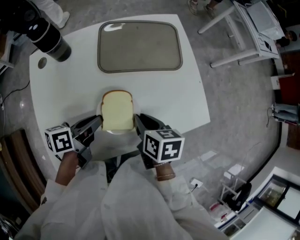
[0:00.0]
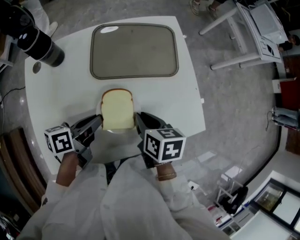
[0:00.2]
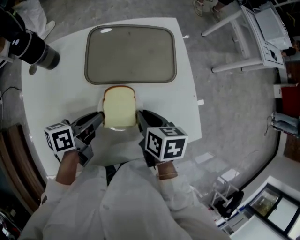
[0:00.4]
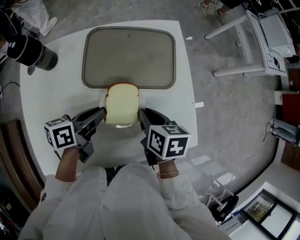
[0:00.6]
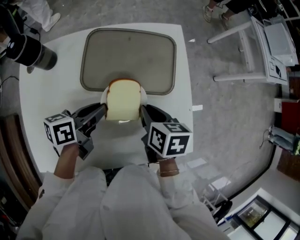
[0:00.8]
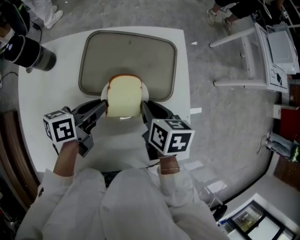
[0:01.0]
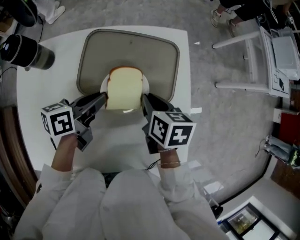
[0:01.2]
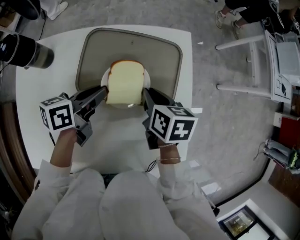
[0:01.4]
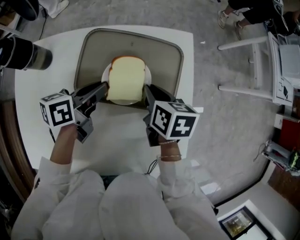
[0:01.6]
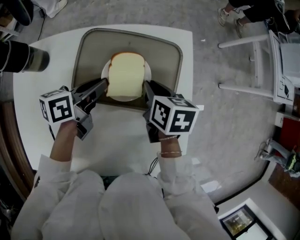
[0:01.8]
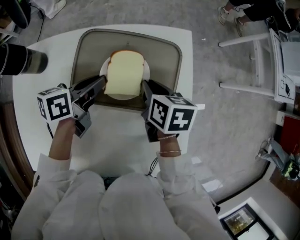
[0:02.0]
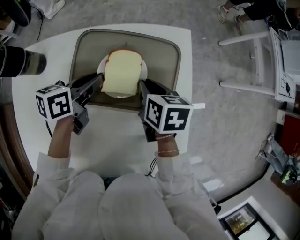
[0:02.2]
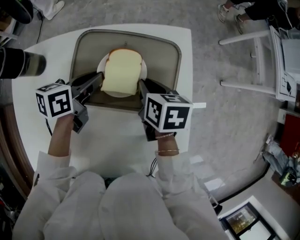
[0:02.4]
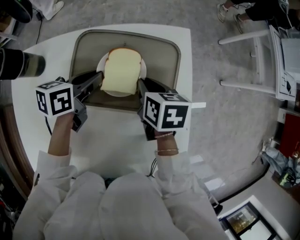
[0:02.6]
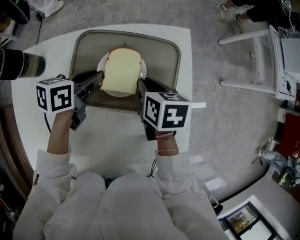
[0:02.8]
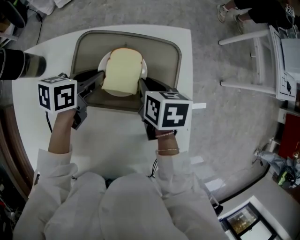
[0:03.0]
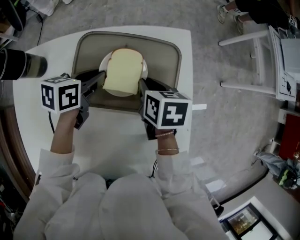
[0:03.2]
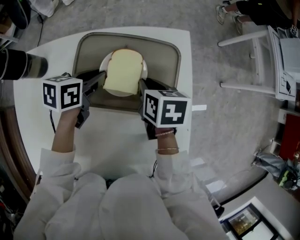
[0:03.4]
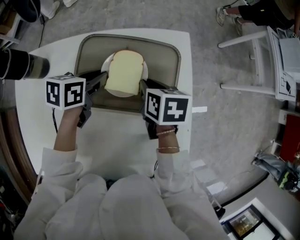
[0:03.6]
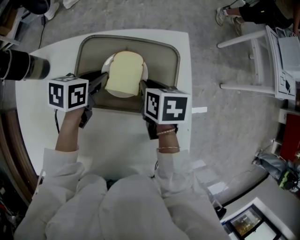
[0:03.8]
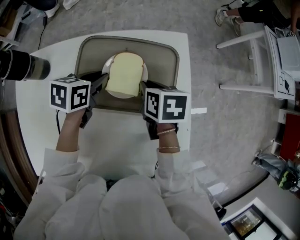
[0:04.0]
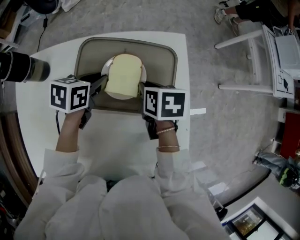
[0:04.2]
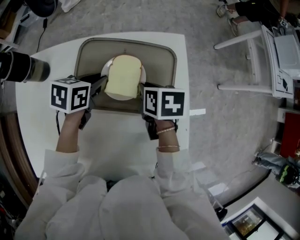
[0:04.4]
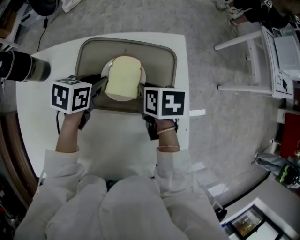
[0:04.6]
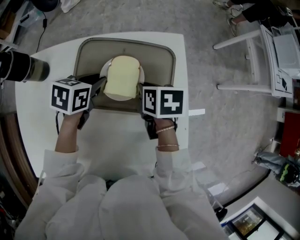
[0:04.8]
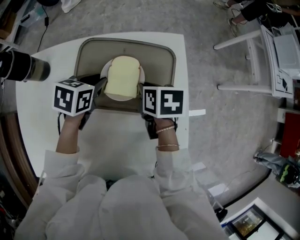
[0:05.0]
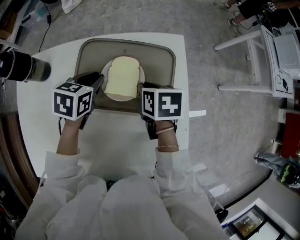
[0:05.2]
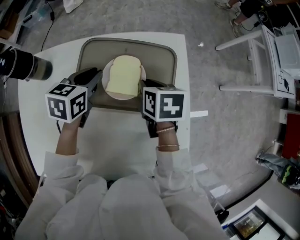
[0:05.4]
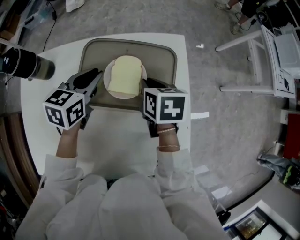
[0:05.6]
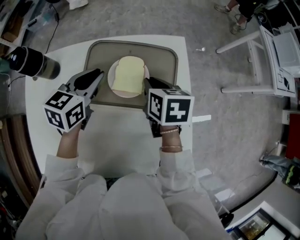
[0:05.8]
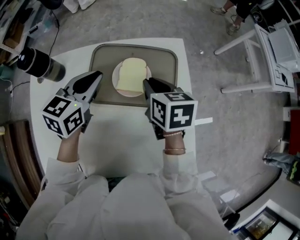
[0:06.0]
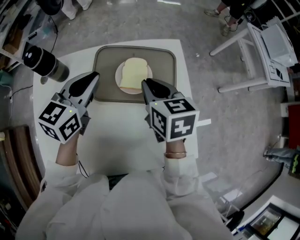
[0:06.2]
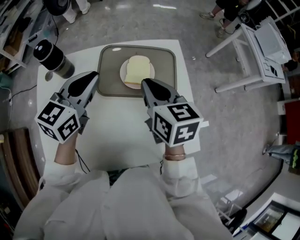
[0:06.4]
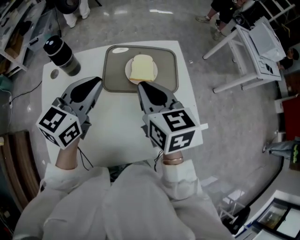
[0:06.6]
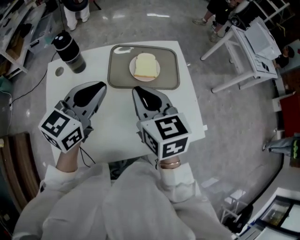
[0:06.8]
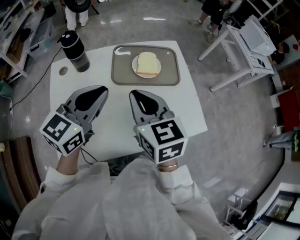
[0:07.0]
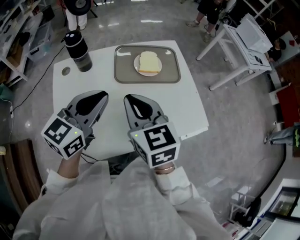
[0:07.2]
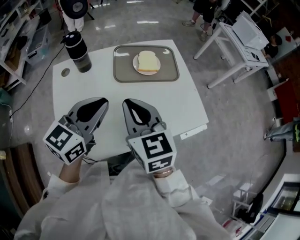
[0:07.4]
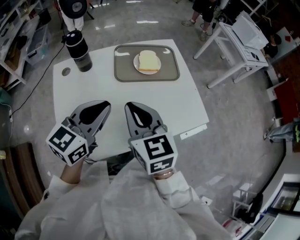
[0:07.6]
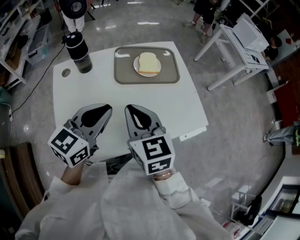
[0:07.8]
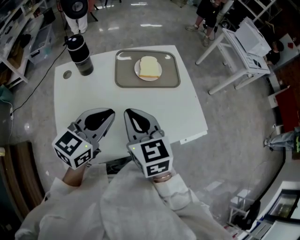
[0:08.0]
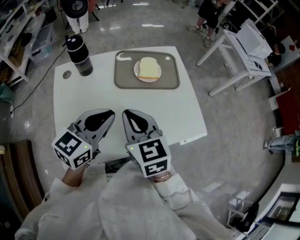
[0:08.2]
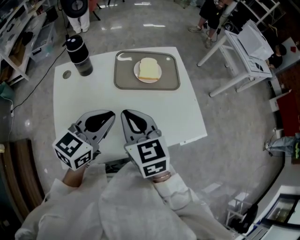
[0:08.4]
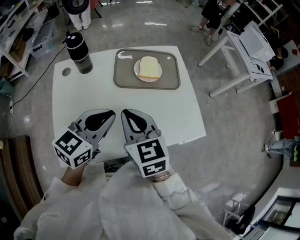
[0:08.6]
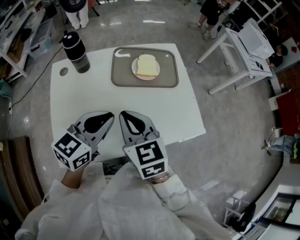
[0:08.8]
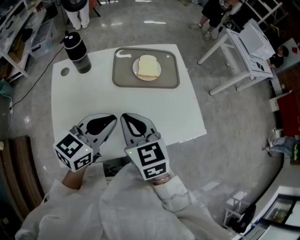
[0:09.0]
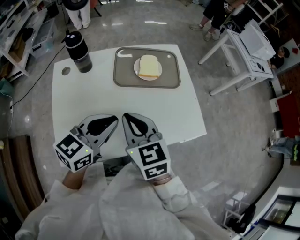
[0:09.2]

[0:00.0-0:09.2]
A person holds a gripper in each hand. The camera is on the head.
0:00.0 to 0:01.6: Both grippers move forward, approximately 25 cm.
0:01.6 to 0:03.0: The left gripper shifts by about 5 cm.
0:03.0 to 0:04.6: The grippers make only small movements.
0:04.6 to 0:06.2: The left gripper travels upward by about 20 cm, and rotates about 40 degrees. The right gripper is displaced upward and backward by about 15 cm, and changes its angle by some 30 degrees.
0:06.2 to 0:07.6: The left gripper is displaced backward by roughly 30 cm, while the right gripper travels backward and to the left by approximately 30 cm, and rotates some 20 degrees.
0:07.6 to 0:09.2: The left gripper changes place by approximately 5 cm.

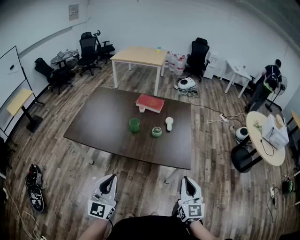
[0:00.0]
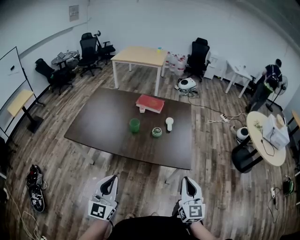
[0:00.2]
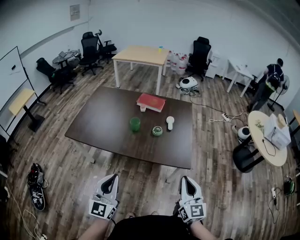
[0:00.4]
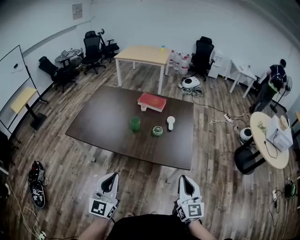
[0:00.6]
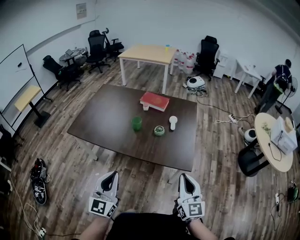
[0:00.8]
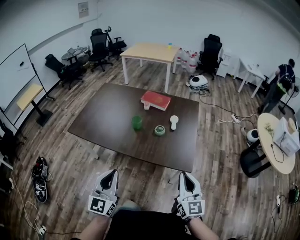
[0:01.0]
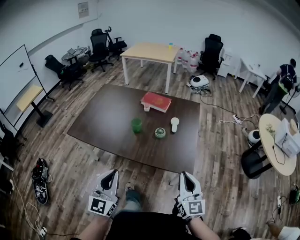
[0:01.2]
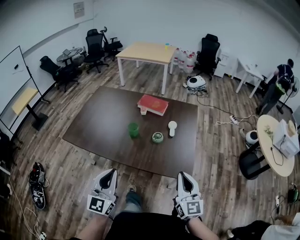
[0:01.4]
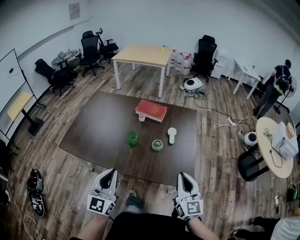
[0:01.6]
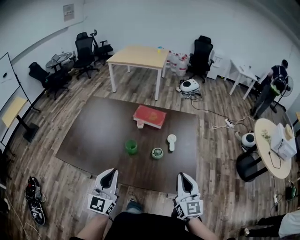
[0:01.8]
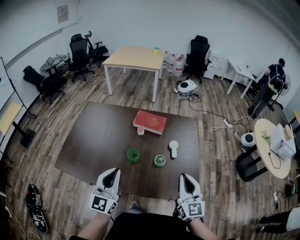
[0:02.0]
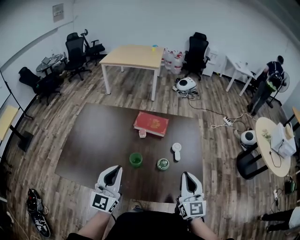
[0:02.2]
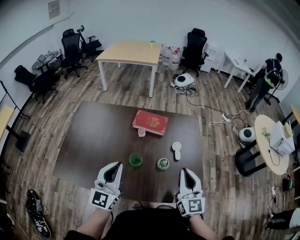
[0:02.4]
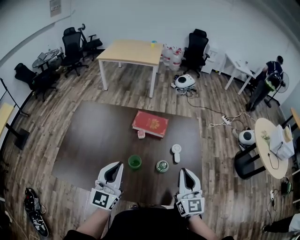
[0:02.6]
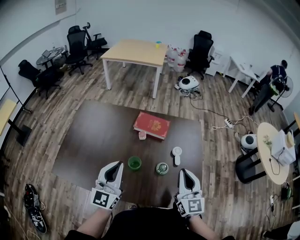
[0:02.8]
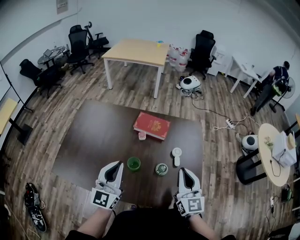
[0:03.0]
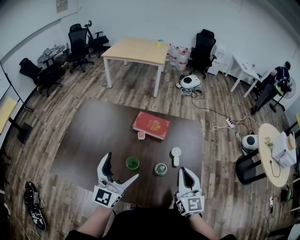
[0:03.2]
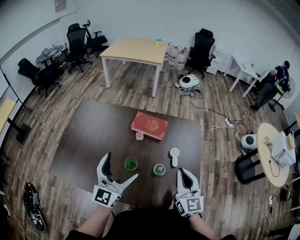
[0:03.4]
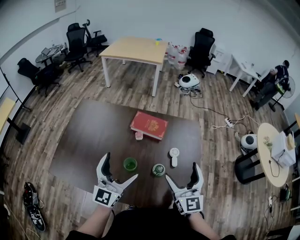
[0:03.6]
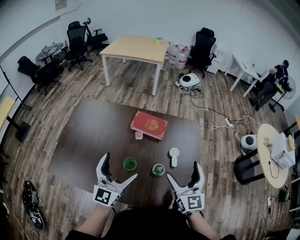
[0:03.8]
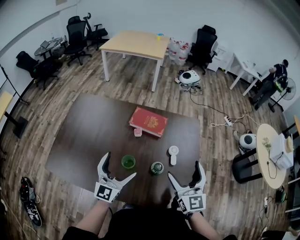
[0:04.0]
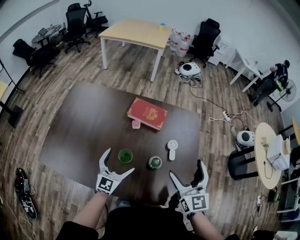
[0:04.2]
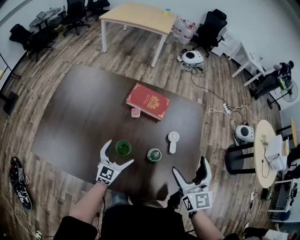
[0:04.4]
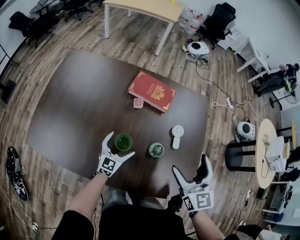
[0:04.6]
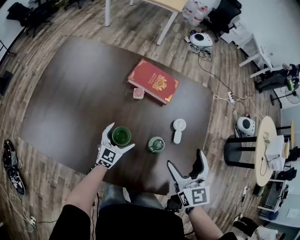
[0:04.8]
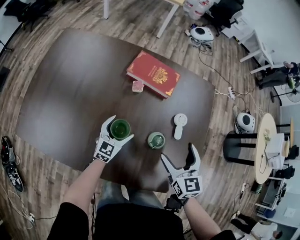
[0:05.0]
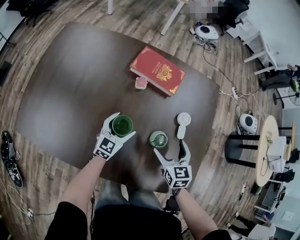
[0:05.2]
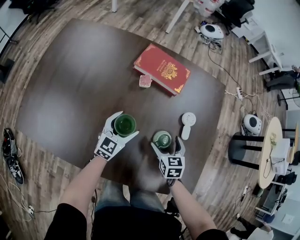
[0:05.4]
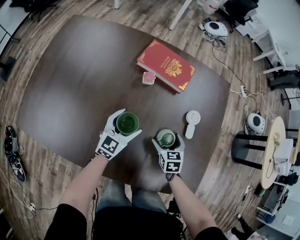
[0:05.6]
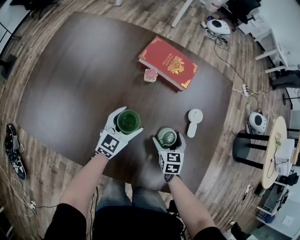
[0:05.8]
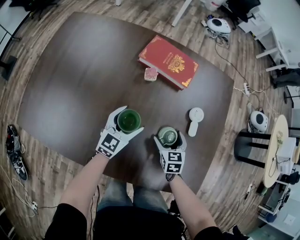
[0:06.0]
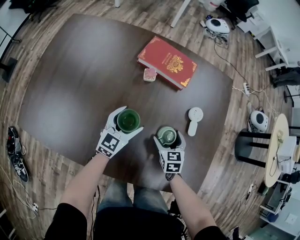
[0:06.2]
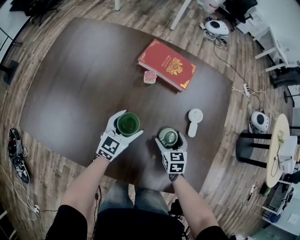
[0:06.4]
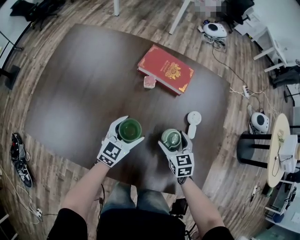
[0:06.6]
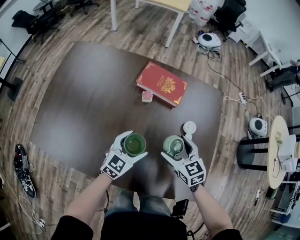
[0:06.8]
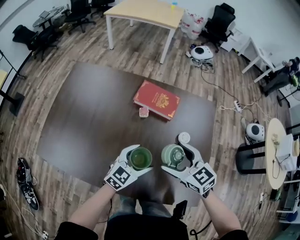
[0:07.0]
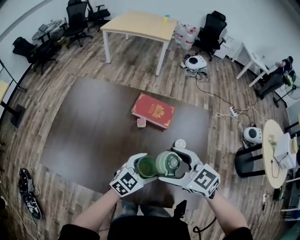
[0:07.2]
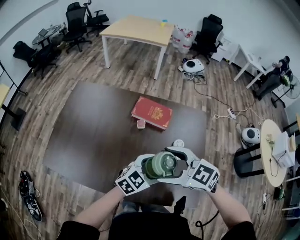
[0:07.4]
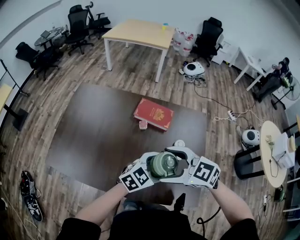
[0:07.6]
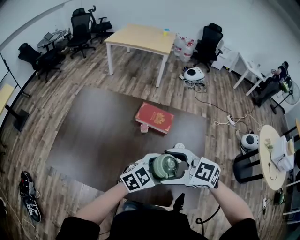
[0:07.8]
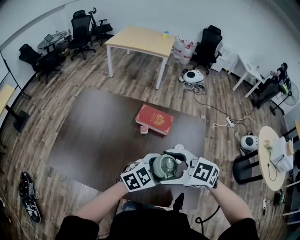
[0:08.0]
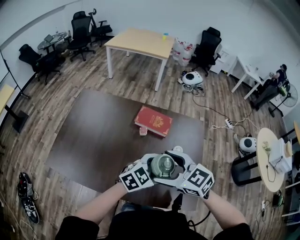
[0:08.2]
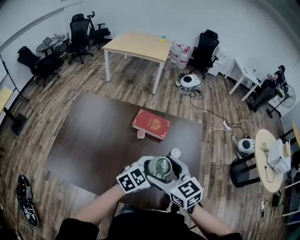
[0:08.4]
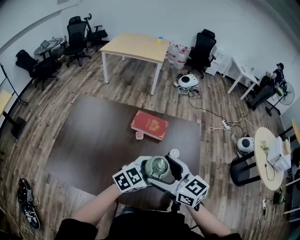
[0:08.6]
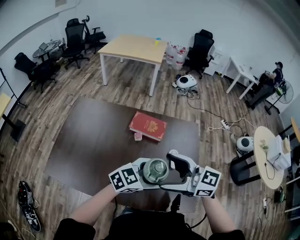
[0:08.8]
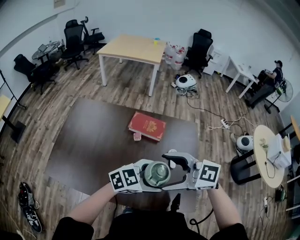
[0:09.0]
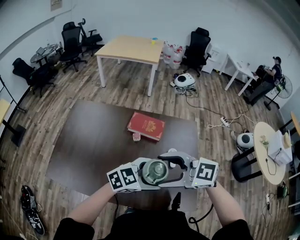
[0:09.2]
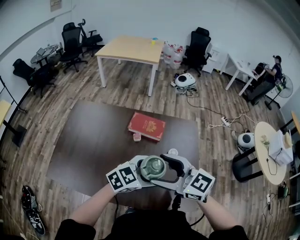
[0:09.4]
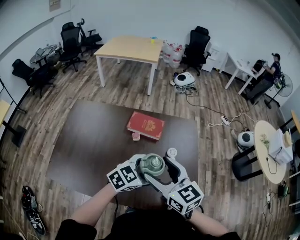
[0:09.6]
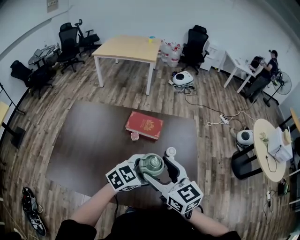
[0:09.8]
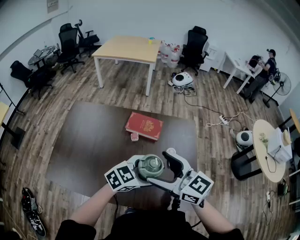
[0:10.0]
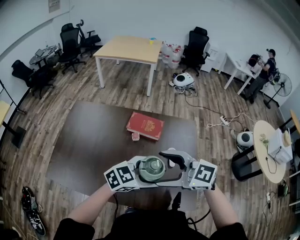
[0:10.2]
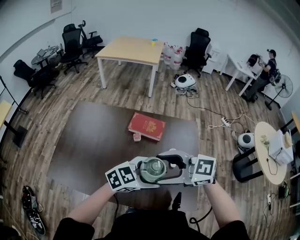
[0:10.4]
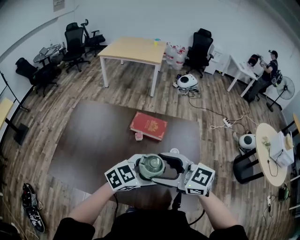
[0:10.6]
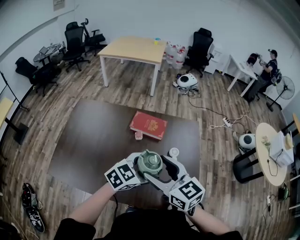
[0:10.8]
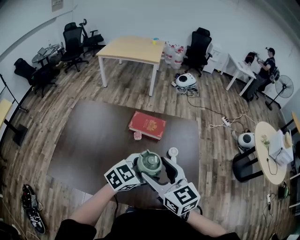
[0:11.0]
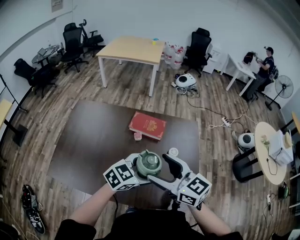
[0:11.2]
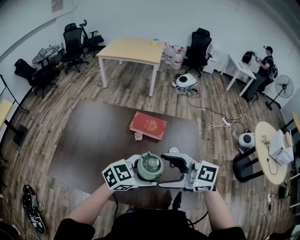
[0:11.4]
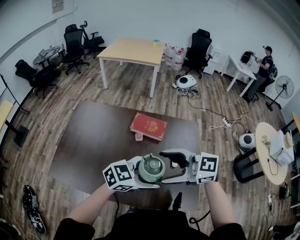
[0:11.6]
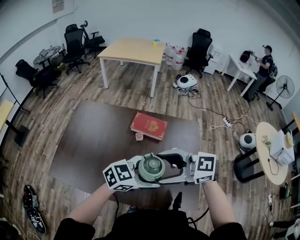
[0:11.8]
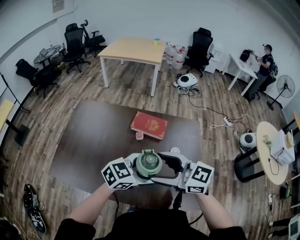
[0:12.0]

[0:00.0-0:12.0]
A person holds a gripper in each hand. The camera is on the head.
0:00.0 to 0:01.6: Both grippers move forward, roughly 20 cm.
0:01.6 to 0:03.0: The right gripper heads forward and to the left, covering roughly 25 cm. Meanwhile the left gripper moves forward, roughly 25 cm.
0:03.0 to 0:04.4: The right gripper goes roughly 5 cm forward, and opens its fingers. Meanwhile the left gripper heads downward, covering about 25 cm, swivels about 20 degrees, and opens up.
0:04.4 to 0:06.0: The right gripper travels downward by some 40 cm, and tilts its fingers approximately 30 degrees downward, while the left gripper travels downward and forward by approximately 15 cm.
0:06.0 to 0:07.6: The right gripper goes some 40 cm upward, and changes its angle by some 60 degrees. The left gripper travels upward by roughly 25 cm, and rotates about 30 degrees.
0:07.6 to 0:09.0: Both grippers move upward, some 10 cm.

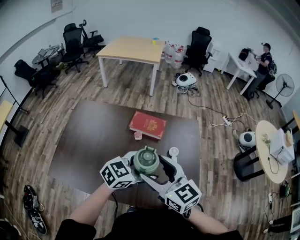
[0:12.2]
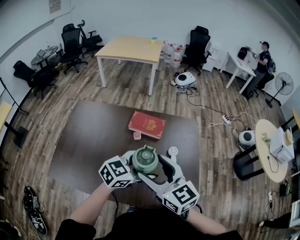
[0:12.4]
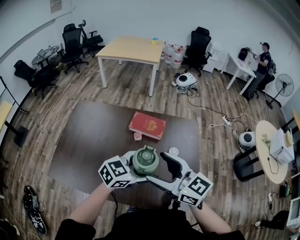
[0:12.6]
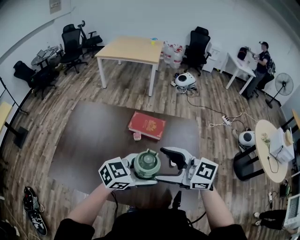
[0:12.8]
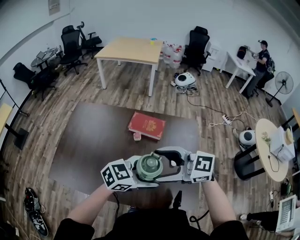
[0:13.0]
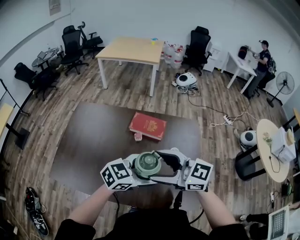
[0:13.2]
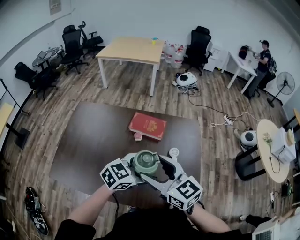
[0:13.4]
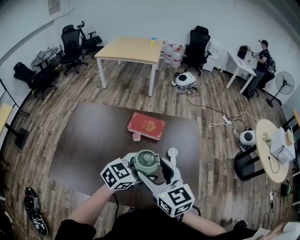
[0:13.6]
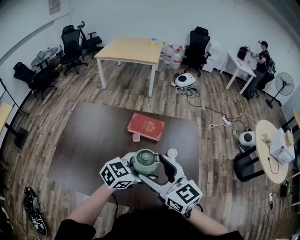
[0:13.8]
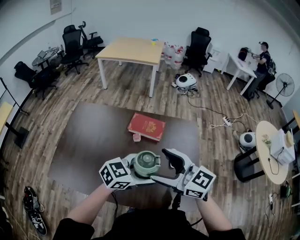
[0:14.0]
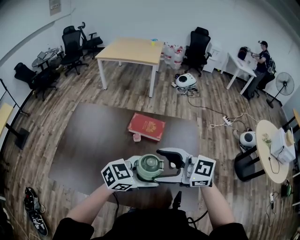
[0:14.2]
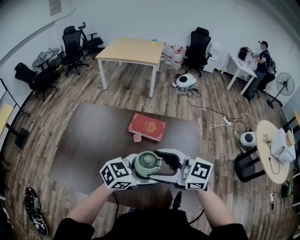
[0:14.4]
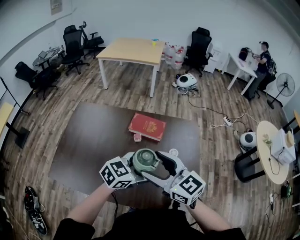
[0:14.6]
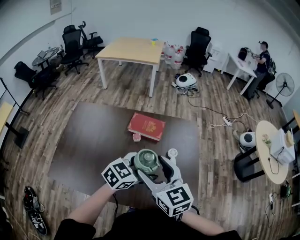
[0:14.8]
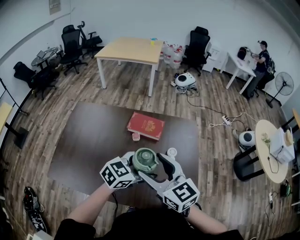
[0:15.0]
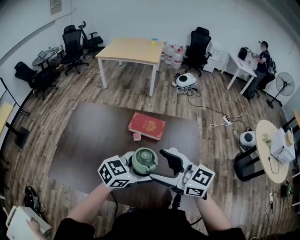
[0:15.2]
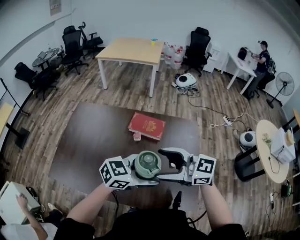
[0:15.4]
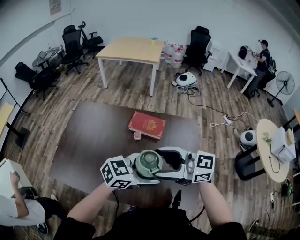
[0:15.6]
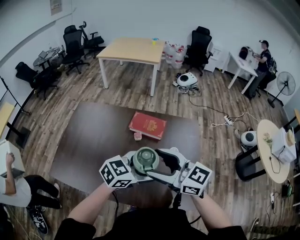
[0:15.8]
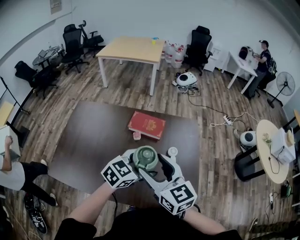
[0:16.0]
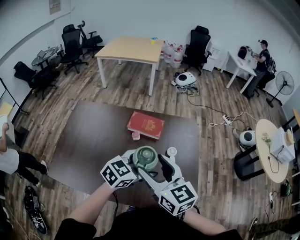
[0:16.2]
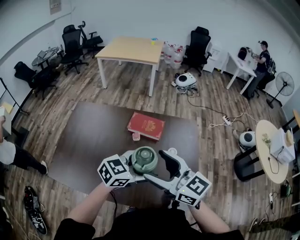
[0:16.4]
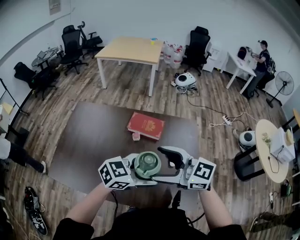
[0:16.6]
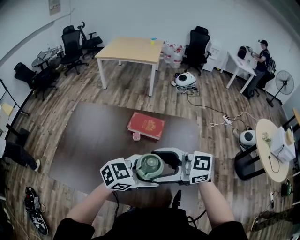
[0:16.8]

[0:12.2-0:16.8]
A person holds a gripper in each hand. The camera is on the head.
0:15.2 to 0:16.8: The right gripper turns by about 20 degrees.
